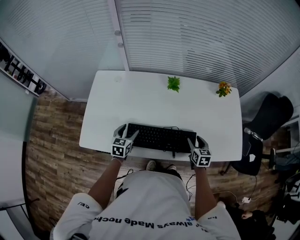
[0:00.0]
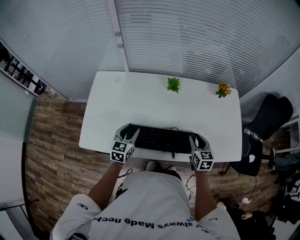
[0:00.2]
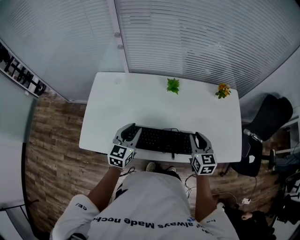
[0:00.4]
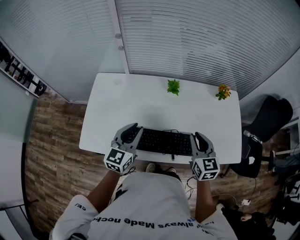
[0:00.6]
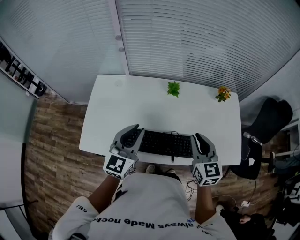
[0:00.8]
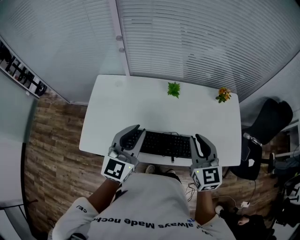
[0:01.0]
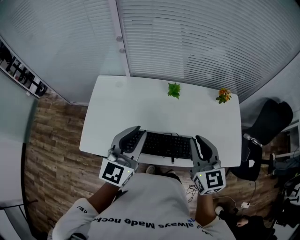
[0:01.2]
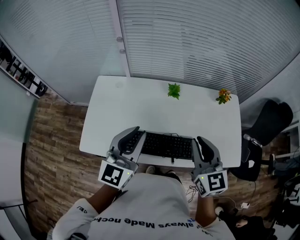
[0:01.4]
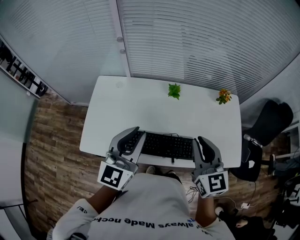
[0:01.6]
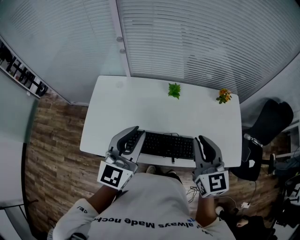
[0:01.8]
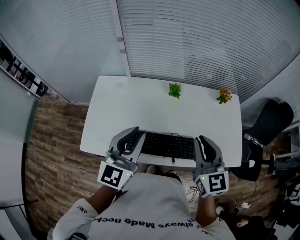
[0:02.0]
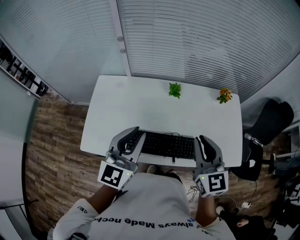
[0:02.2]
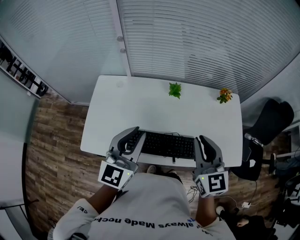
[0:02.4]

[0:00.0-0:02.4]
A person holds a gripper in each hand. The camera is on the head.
0:00.0 to 0:01.2: Both grippers move upward, approximately 30 cm. The left gripper tips its fingers upward by roughly 30 degrees, and closes up. Meanwhile the right gripper changes its angle by about 30 degrees, and closes its fingers.
0:01.2 to 0:02.4: The grippers stay close to where they were, moving slightly.

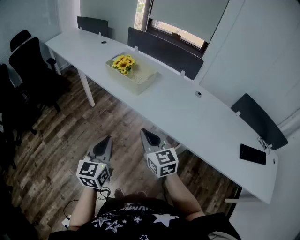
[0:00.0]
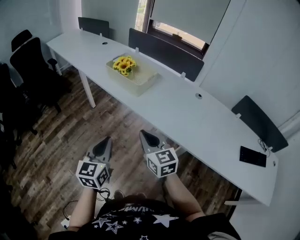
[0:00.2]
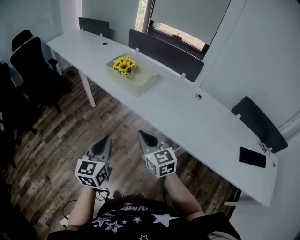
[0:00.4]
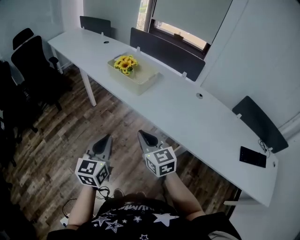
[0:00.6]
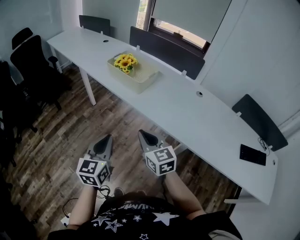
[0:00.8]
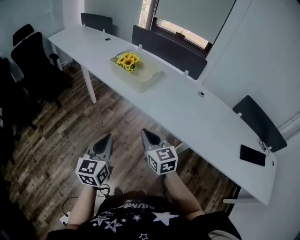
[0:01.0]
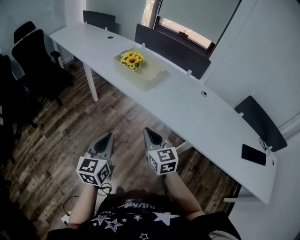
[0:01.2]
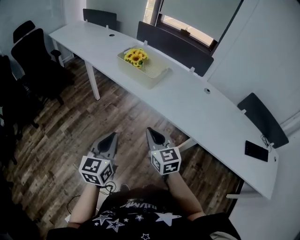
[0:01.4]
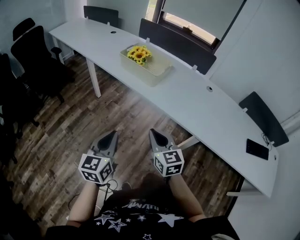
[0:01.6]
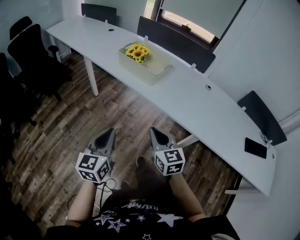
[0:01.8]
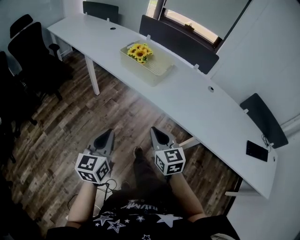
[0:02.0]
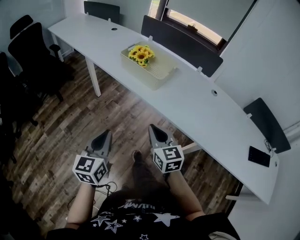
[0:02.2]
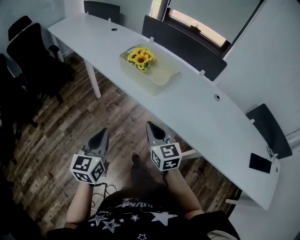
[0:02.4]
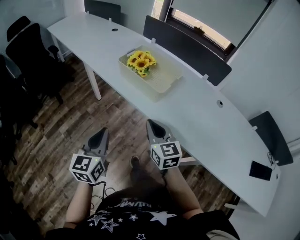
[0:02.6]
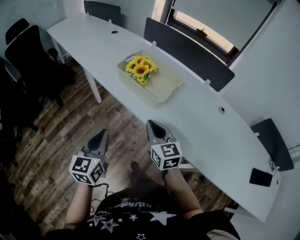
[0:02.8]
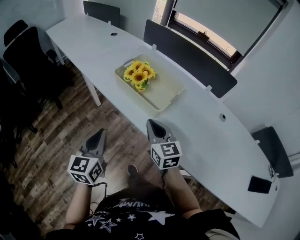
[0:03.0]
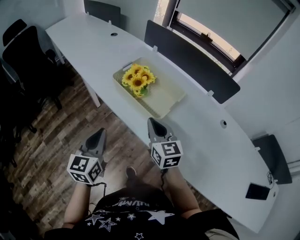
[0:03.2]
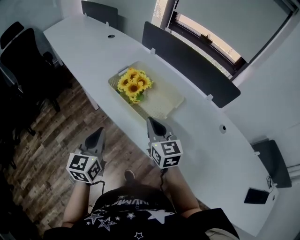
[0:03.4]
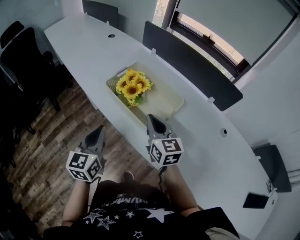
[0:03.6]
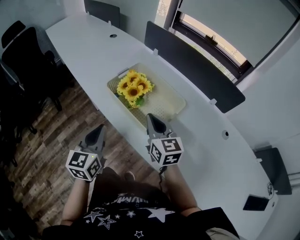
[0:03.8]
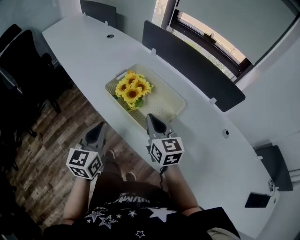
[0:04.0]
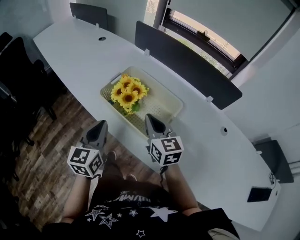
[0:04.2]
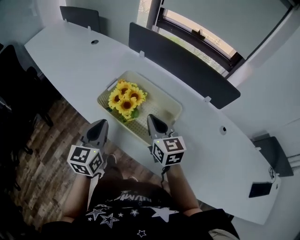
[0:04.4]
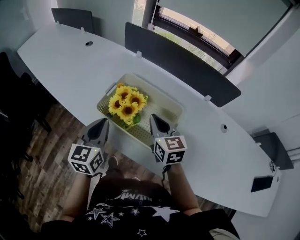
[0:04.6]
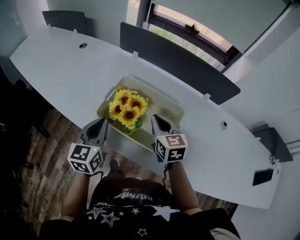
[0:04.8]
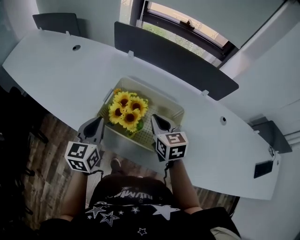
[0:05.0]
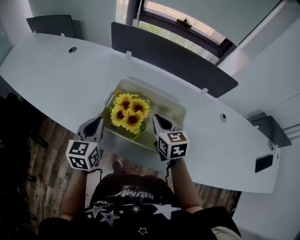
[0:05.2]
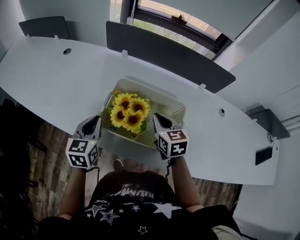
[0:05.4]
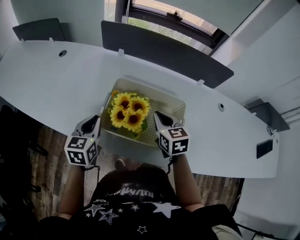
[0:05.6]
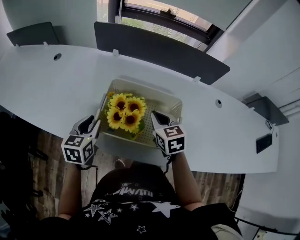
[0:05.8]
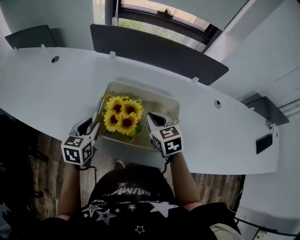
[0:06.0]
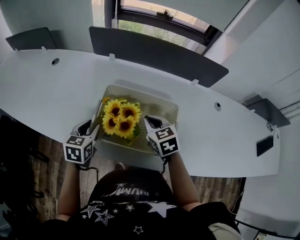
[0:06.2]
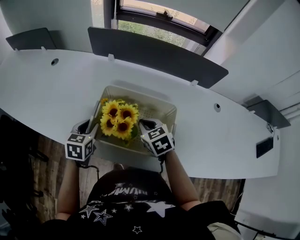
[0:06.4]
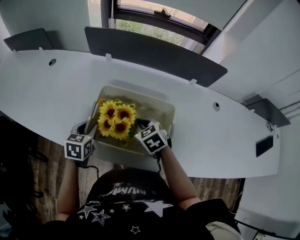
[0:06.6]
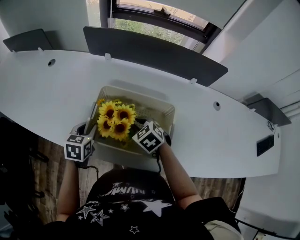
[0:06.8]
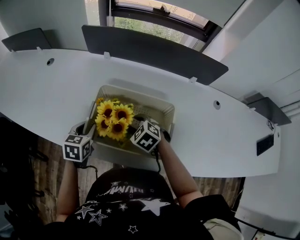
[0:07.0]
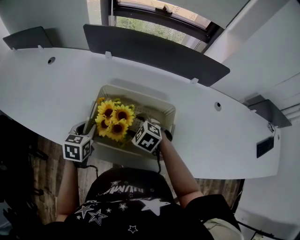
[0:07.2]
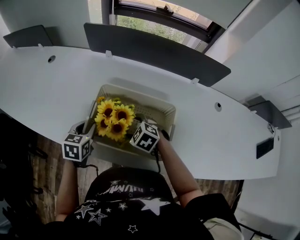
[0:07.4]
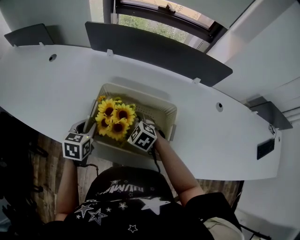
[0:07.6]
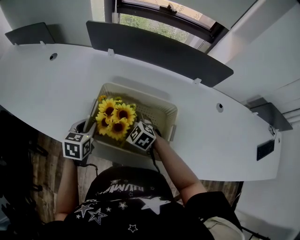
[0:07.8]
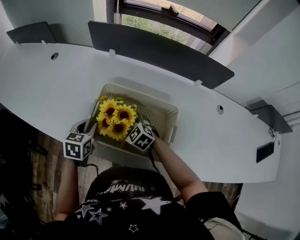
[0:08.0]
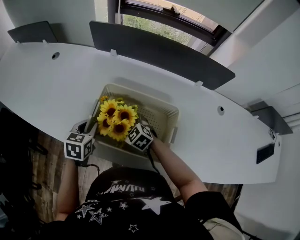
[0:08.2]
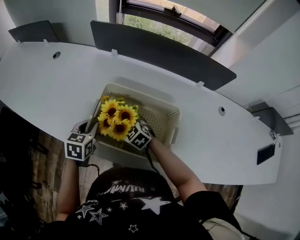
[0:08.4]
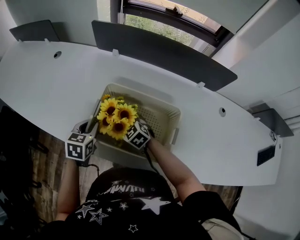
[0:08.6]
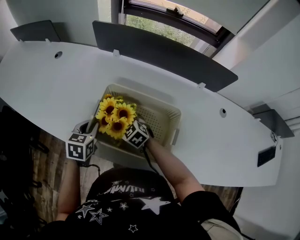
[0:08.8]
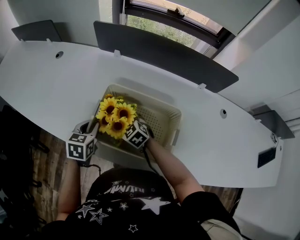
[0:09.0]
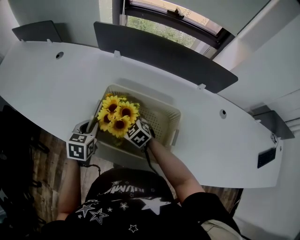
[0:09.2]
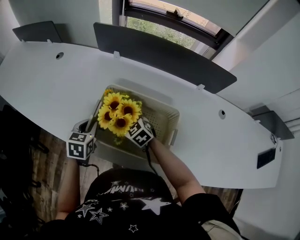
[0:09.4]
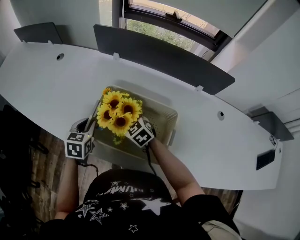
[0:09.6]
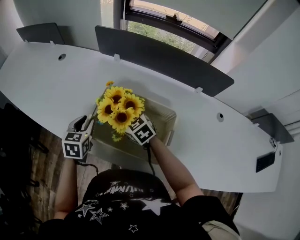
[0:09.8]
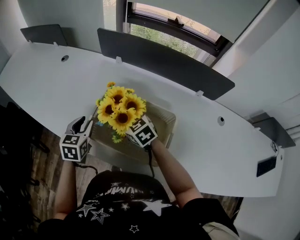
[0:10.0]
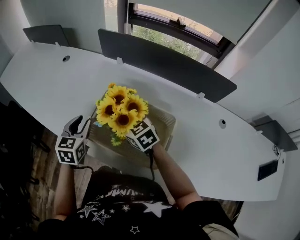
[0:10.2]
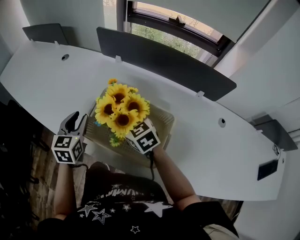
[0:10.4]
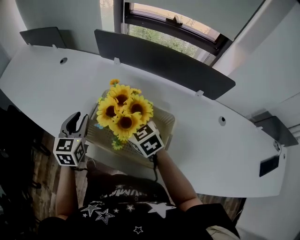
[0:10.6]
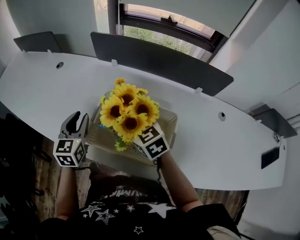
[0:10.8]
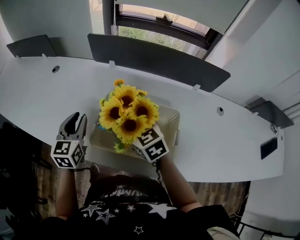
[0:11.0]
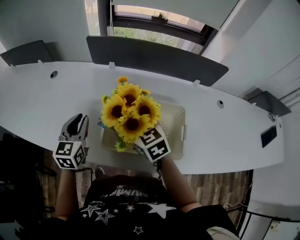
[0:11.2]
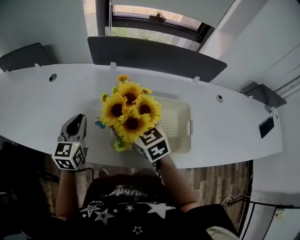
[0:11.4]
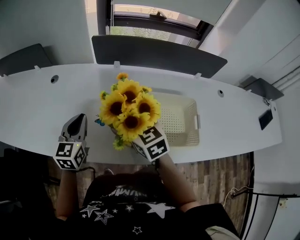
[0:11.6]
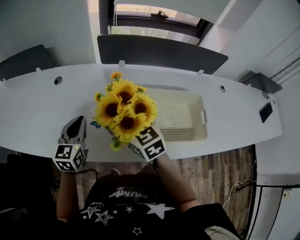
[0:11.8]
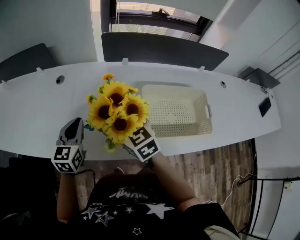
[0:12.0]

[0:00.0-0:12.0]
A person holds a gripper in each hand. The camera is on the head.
0:00.0 to 0:01.6: Both grippers move to the left, approximately 5 cm.
0:01.6 to 0:03.0: The two grippers go approximately 30 cm forward.
0:03.0 to 0:04.4: Both grippers move forward, some 20 cm.
0:04.4 to 0:06.0: The right gripper moves forward and downward, about 10 cm, and rotates roughly 30 degrees. Meanwhile the left gripper travels forward, downward and to the left by some 20 cm, swivels approximately 30 degrees, and opens its fingers.
0:06.0 to 0:07.6: The right gripper goes some 15 cm downward and to the left, rotates roughly 40 degrees, and opens up.
0:07.6 to 0:09.0: The right gripper changes place by about 5 cm.
0:09.0 to 0:10.4: Both grippers travel together upward, about 10 cm. The left gripper rotates some 20 degrees.
0:10.4 to 0:12.0: The right gripper changes place by approximately 25 cm, and rotates roughly 30 degrees; the left gripper shifts by approximately 25 cm, rotates approximately 30 degrees, and closes its fingers.

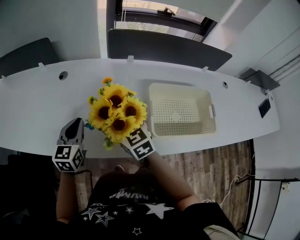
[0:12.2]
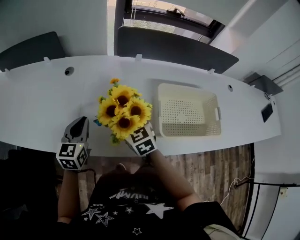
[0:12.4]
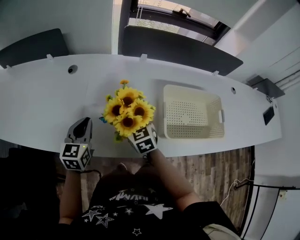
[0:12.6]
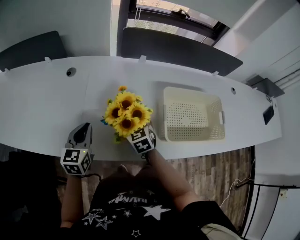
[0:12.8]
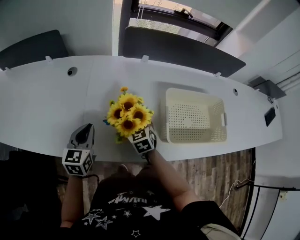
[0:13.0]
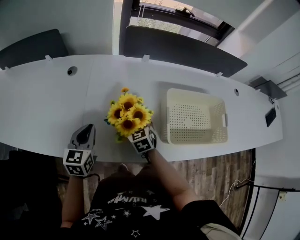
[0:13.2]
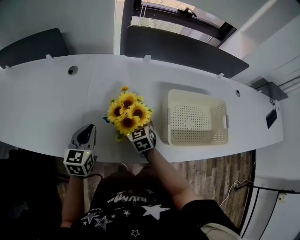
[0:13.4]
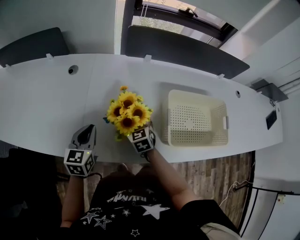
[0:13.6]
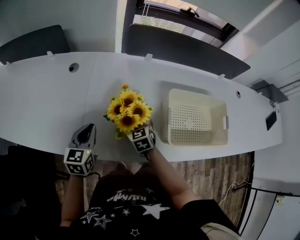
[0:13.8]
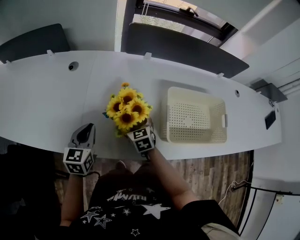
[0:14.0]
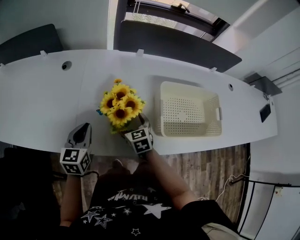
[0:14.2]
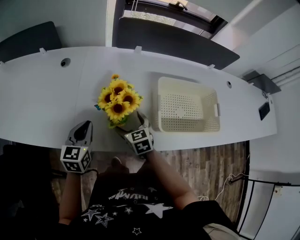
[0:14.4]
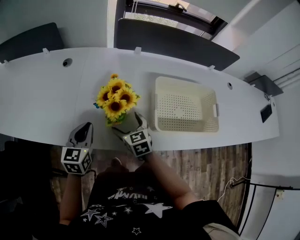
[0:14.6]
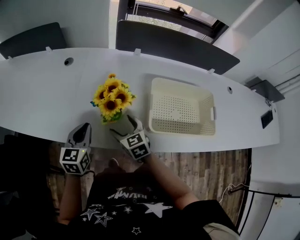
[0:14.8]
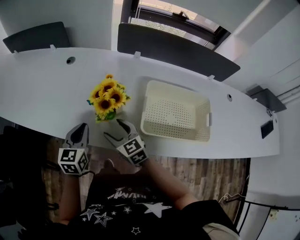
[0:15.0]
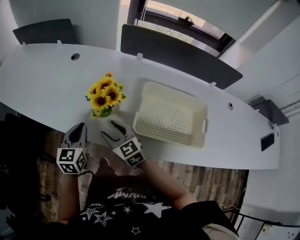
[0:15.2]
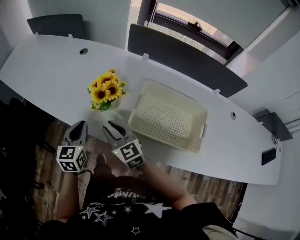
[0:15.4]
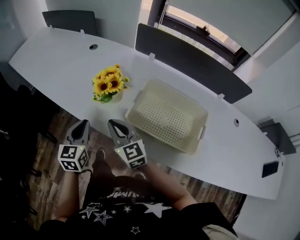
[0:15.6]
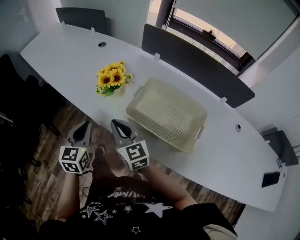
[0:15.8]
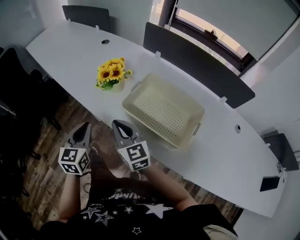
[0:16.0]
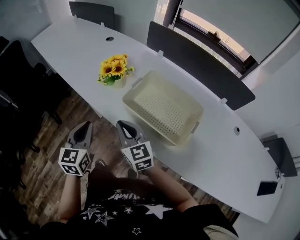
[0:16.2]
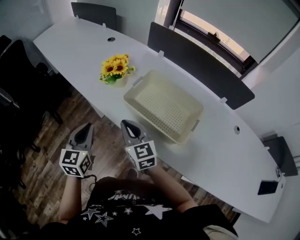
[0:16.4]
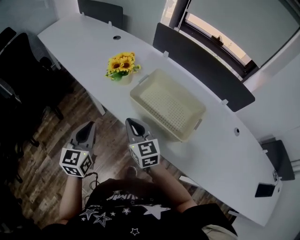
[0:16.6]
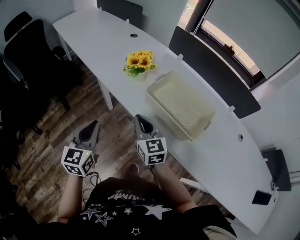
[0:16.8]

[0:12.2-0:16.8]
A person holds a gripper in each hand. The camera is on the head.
0:12.2 to 0:13.8: The right gripper shifts approximately 20 cm downward. The left gripper shifts roughly 10 cm downward.
0:13.8 to 0:15.2: The right gripper travels backward and upward by about 20 cm, turns by roughly 30 degrees, and closes up. The left gripper is displaced backward and to the right by roughly 15 cm.
0:15.2 to 0:16.8: The two grippers go about 25 cm backward. The left gripper changes its angle by some 20 degrees. The right gripper closes.

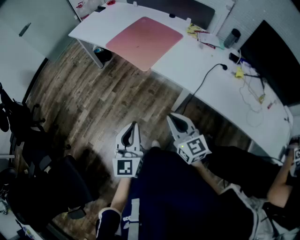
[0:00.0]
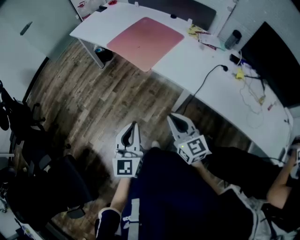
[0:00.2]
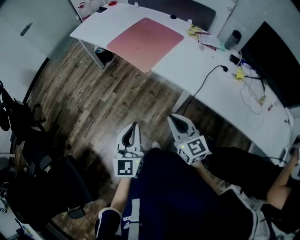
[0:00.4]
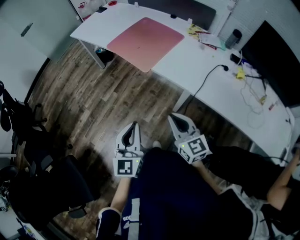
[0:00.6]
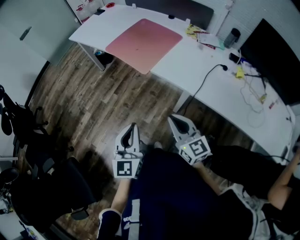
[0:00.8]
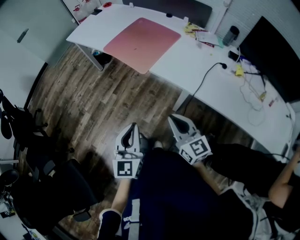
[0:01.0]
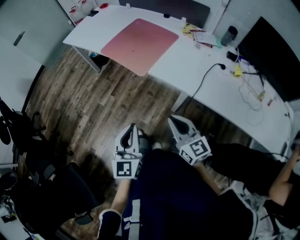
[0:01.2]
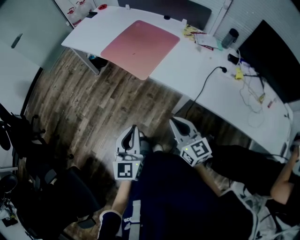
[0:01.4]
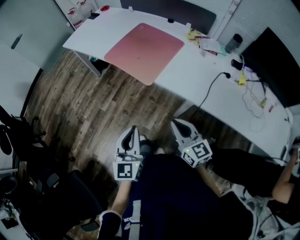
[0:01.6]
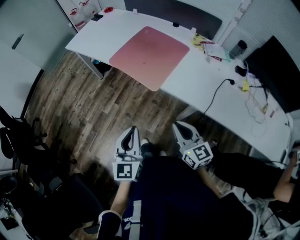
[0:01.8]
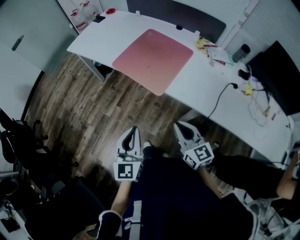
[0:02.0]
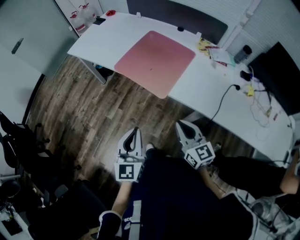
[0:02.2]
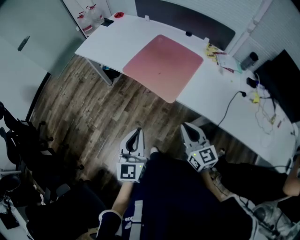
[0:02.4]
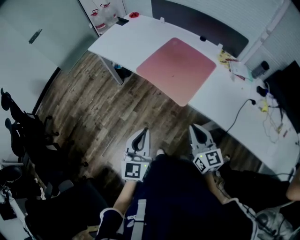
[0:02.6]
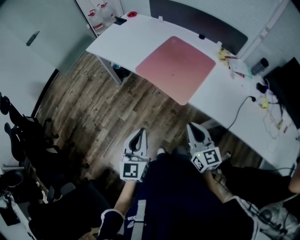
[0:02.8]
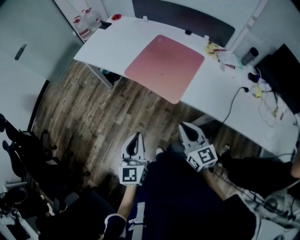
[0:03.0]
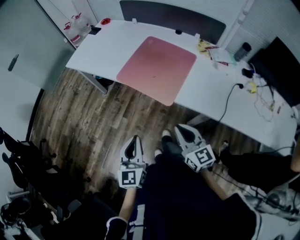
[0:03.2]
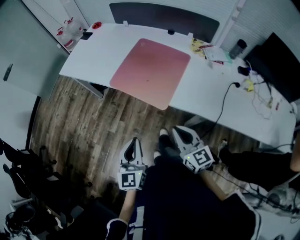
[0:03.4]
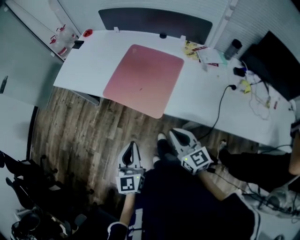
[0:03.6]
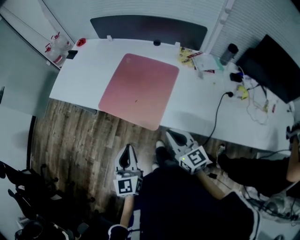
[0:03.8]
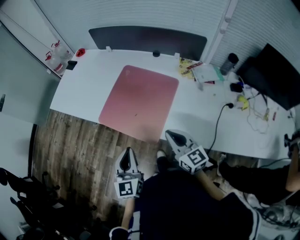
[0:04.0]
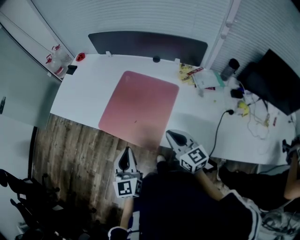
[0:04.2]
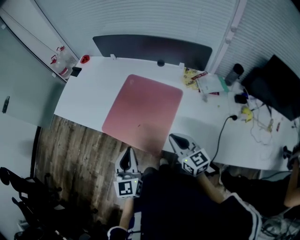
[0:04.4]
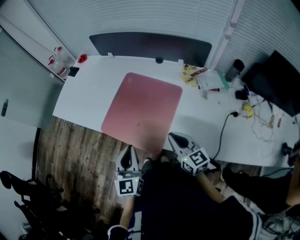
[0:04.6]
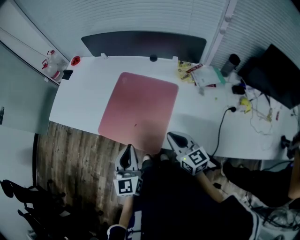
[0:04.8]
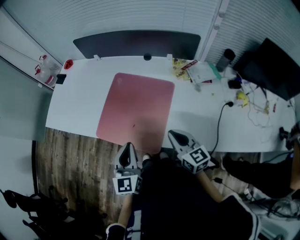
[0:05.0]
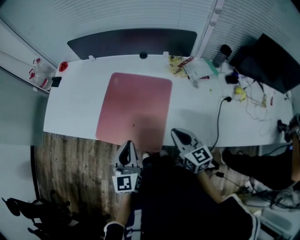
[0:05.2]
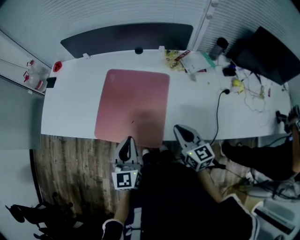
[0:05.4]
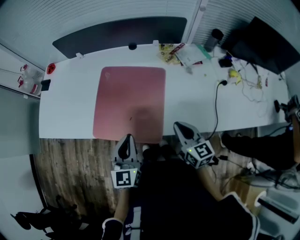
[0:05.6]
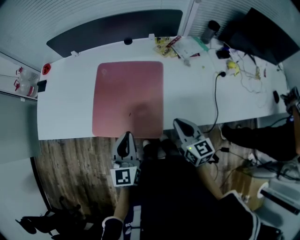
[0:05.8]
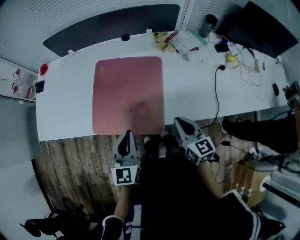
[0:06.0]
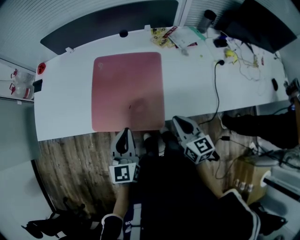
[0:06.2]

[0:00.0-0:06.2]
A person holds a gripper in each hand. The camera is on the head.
0:00.0 to 0:01.6: The two grippers go about 10 cm forward.
0:01.6 to 0:03.2: The grippers both shift forward and to the left by approximately 15 cm.
0:03.2 to 0:04.6: The two grippers go about 25 cm forward and to the right.
0:04.6 to 0:06.2: The right gripper moves roughly 5 cm, and swivels roughly 30 degrees. The left gripper moves about 5 cm, and swivels roughly 30 degrees.
